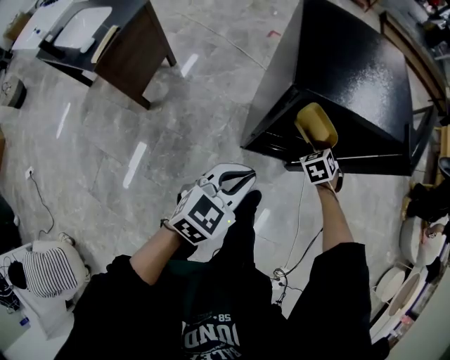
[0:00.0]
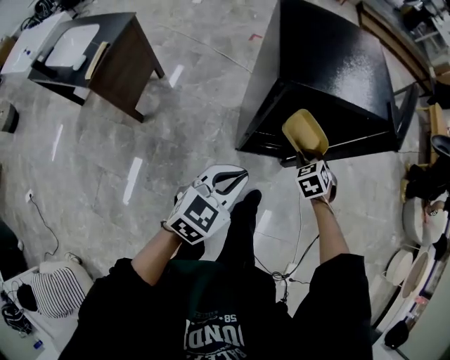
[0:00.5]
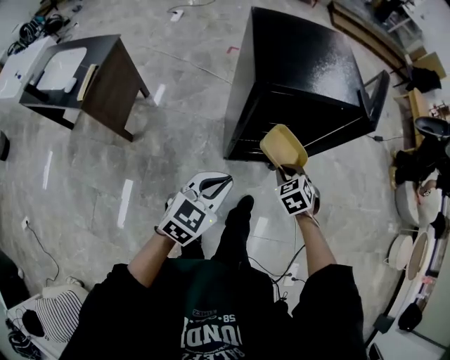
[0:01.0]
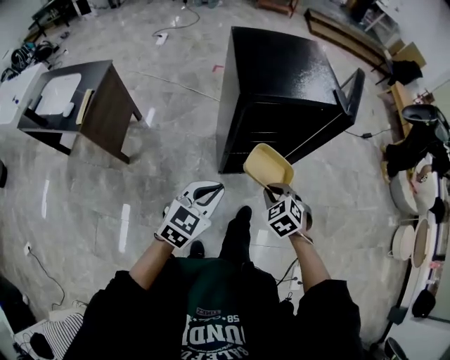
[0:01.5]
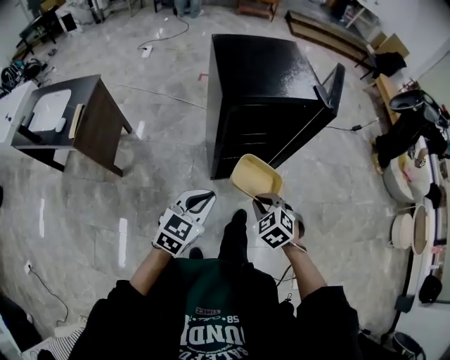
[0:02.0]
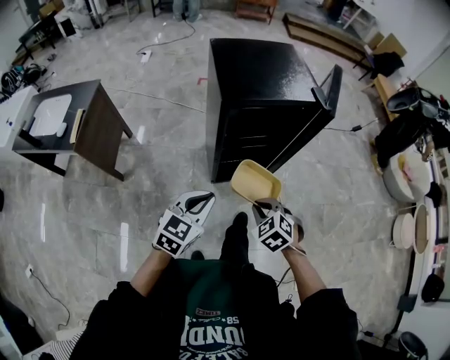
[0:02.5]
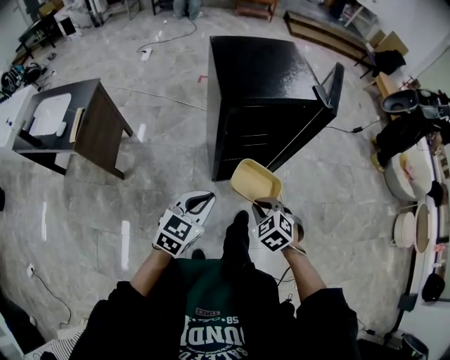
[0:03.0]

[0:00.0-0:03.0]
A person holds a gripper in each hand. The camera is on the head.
0:00.0 to 0:01.5: The left gripper travels backward and upward by some 10 cm; the right gripper is displaced backward and upward by about 30 cm.
0:01.5 to 0:03.0: The right gripper travels backward by about 5 cm.

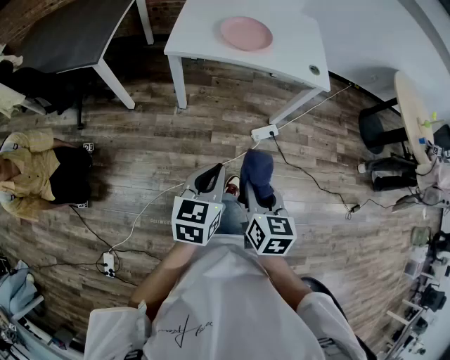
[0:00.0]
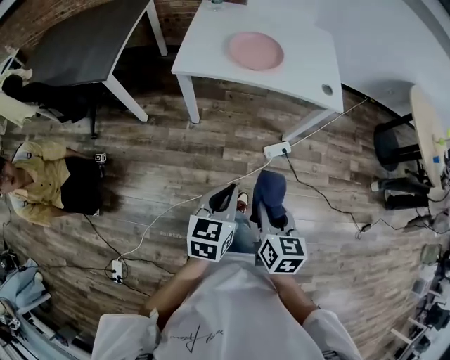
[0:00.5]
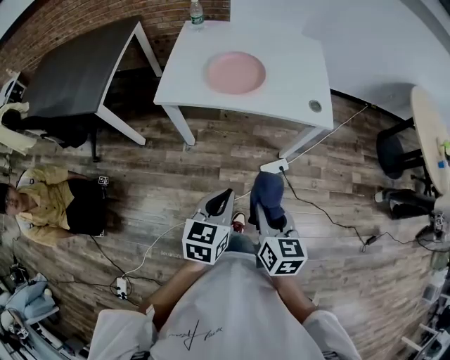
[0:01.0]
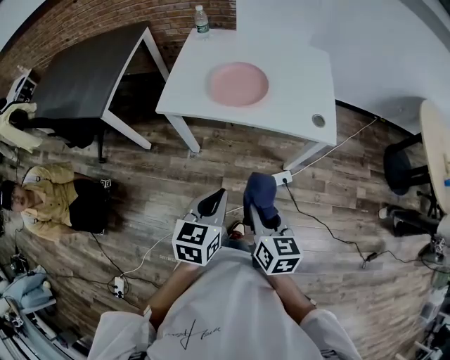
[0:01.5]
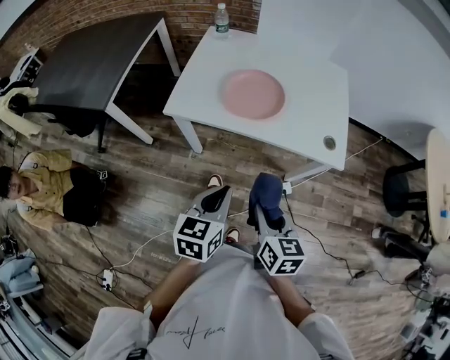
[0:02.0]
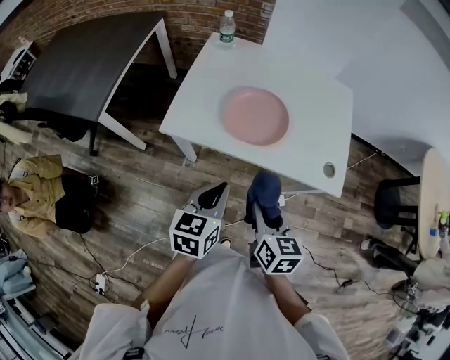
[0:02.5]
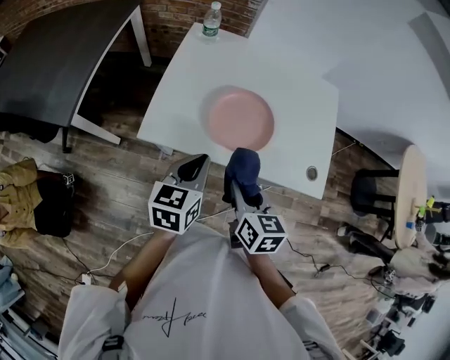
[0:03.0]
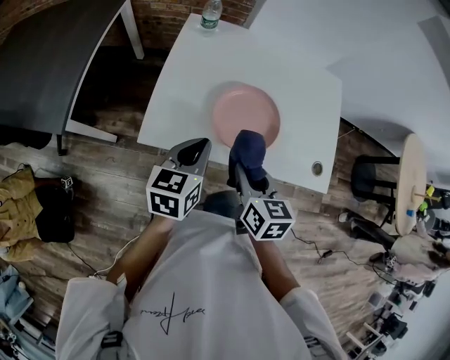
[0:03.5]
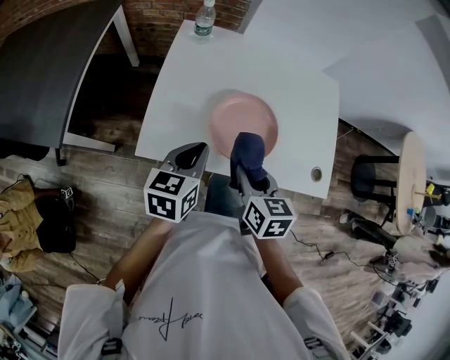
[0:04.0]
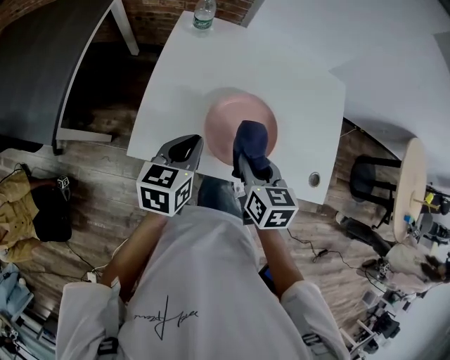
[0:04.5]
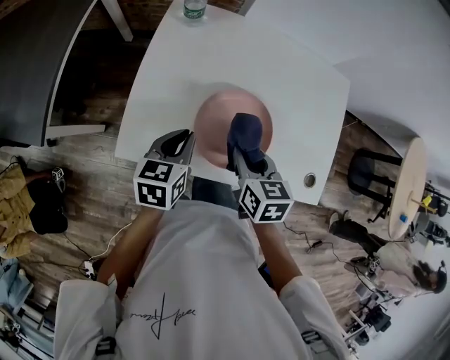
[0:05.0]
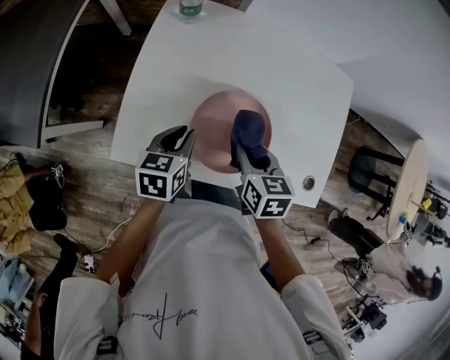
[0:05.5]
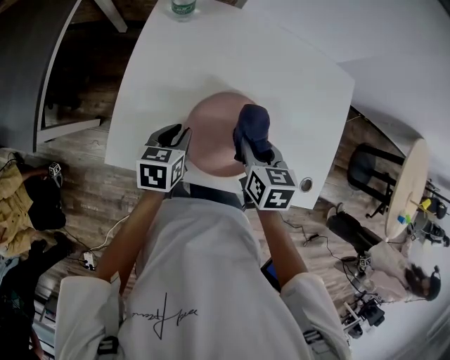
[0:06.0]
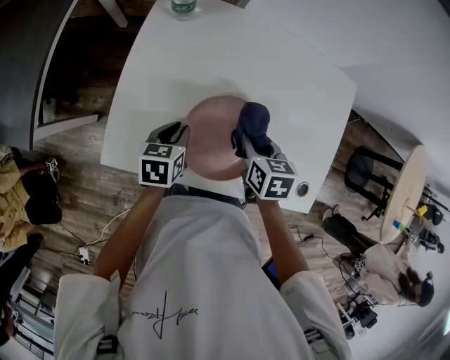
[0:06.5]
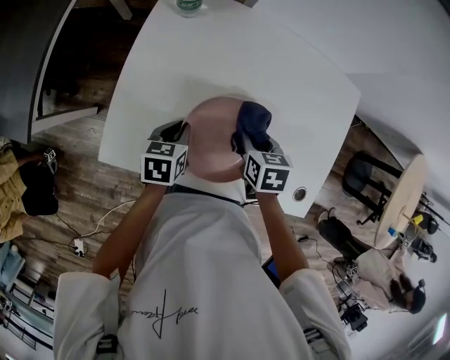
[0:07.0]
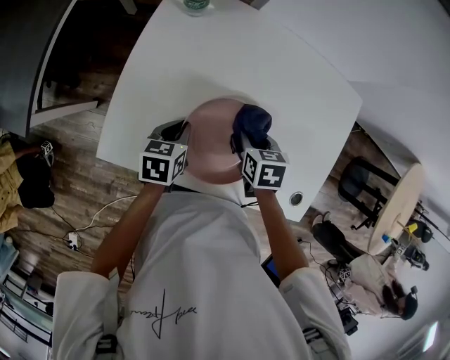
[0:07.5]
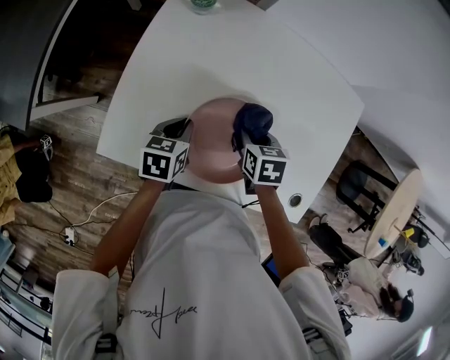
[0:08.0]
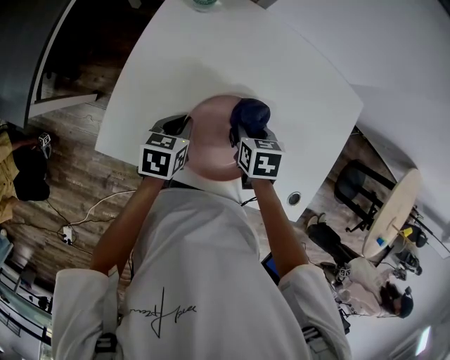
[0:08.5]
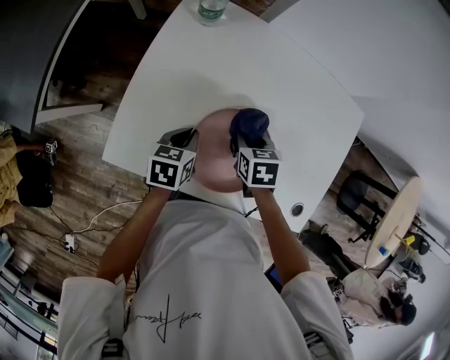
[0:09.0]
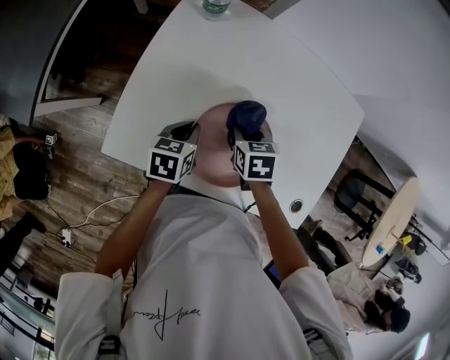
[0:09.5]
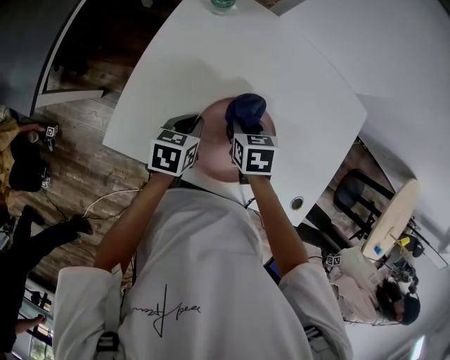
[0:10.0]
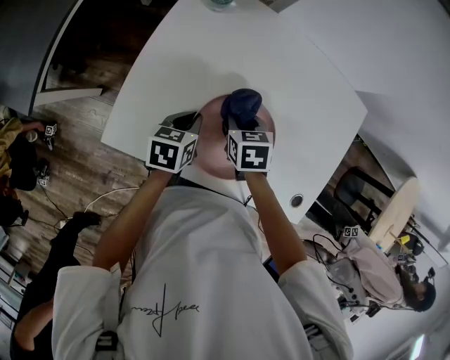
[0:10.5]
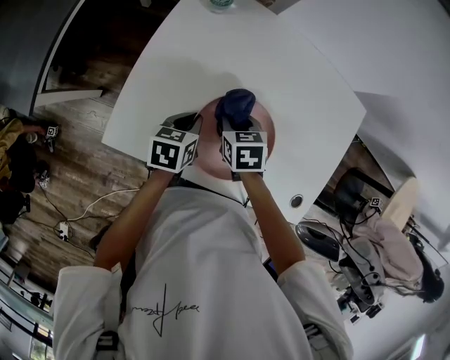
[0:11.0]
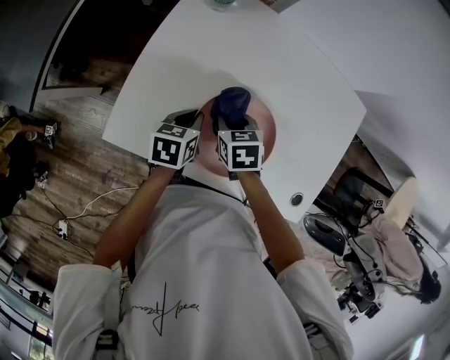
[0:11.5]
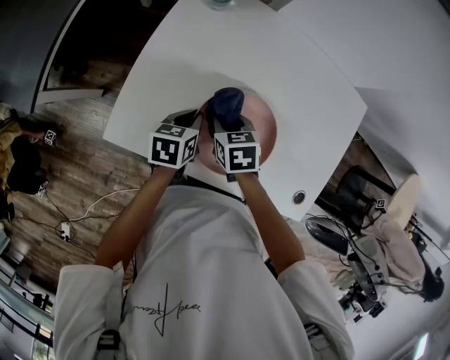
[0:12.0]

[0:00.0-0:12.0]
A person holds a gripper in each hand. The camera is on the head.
0:00.0 to 0:02.0: The two grippers go about 25 cm forward.
0:02.0 to 0:04.0: Both grippers travel together forward, some 30 cm.
0:04.0 to 0:06.0: The right gripper moves forward, downward and to the right, some 20 cm. The left gripper moves downward and forward, roughly 15 cm, turns by some 20 degrees, and opens its fingers.
0:06.0 to 0:08.0: The right gripper shifts some 5 cm downward.
0:08.0 to 0:10.0: The right gripper travels to the left by some 5 cm.
0:10.0 to 0:12.0: The right gripper ends up roughly 5 cm from where it was.

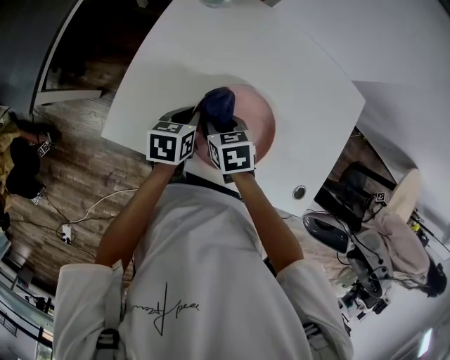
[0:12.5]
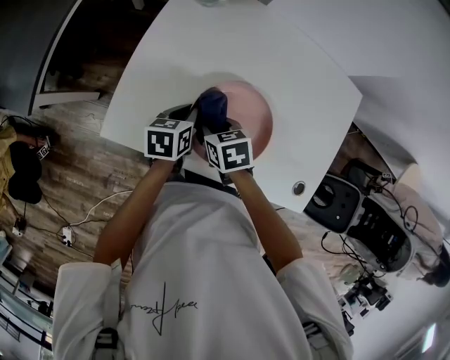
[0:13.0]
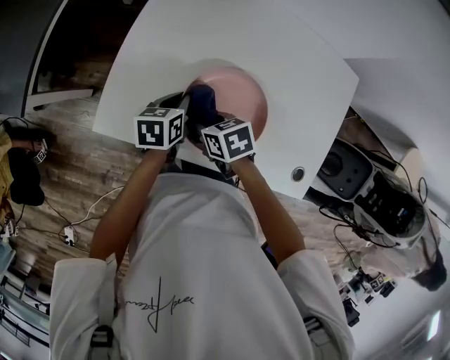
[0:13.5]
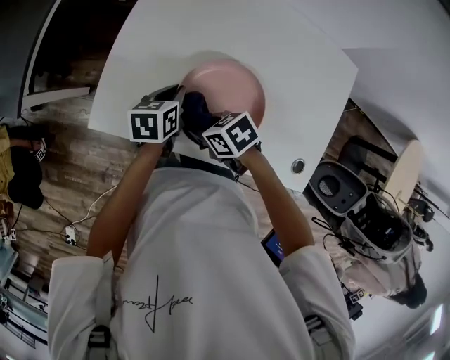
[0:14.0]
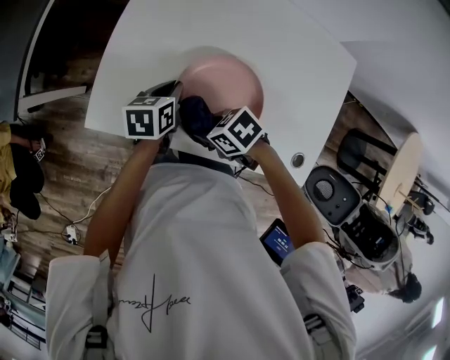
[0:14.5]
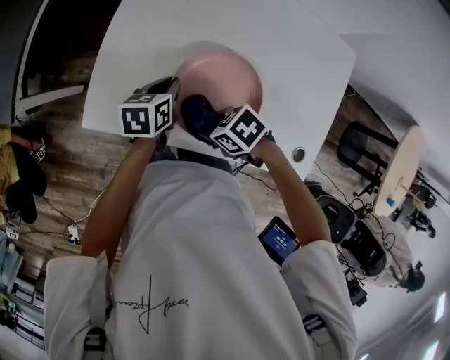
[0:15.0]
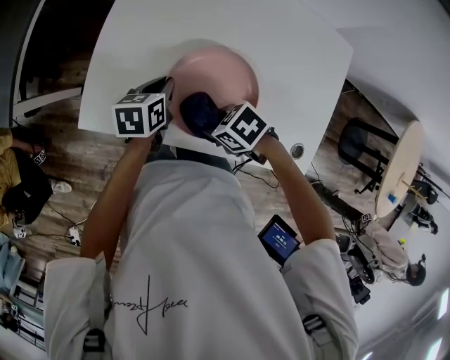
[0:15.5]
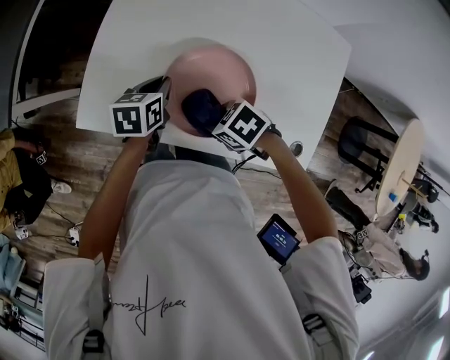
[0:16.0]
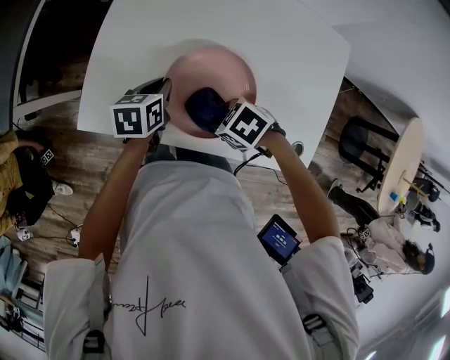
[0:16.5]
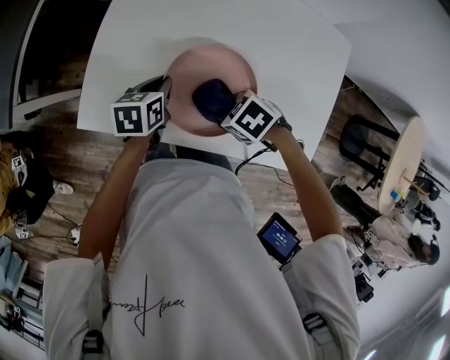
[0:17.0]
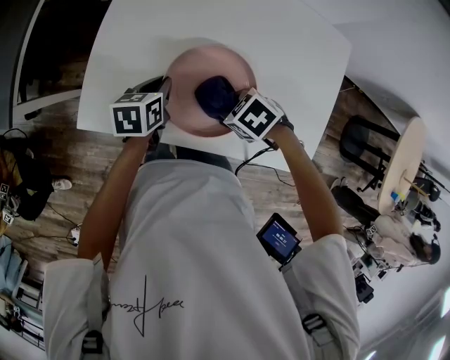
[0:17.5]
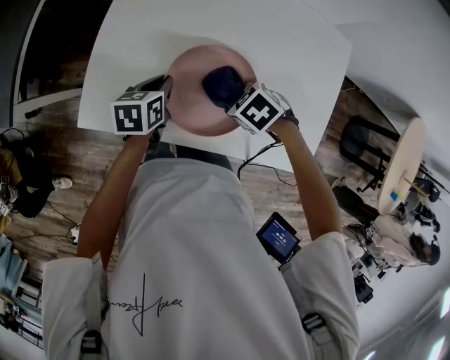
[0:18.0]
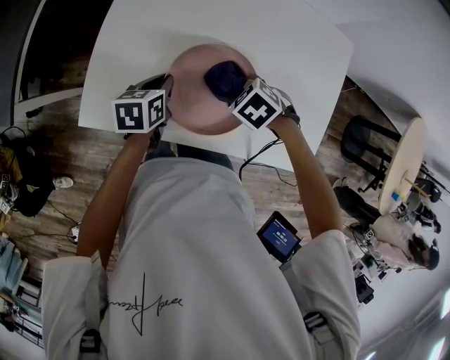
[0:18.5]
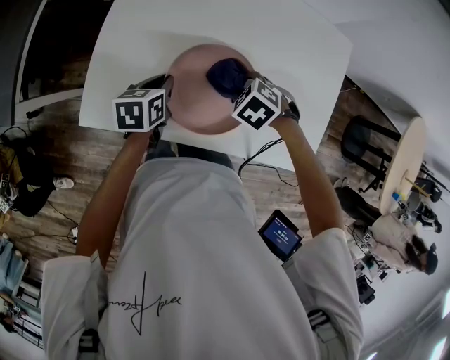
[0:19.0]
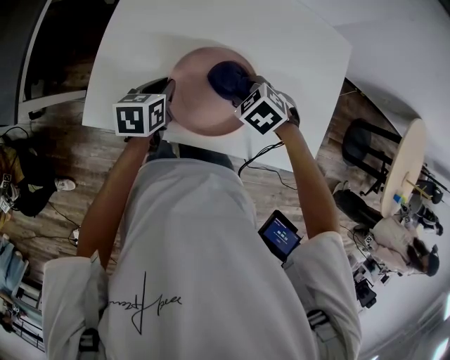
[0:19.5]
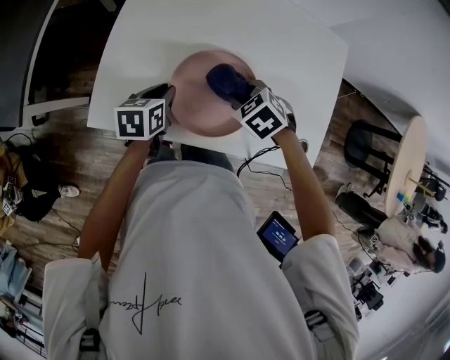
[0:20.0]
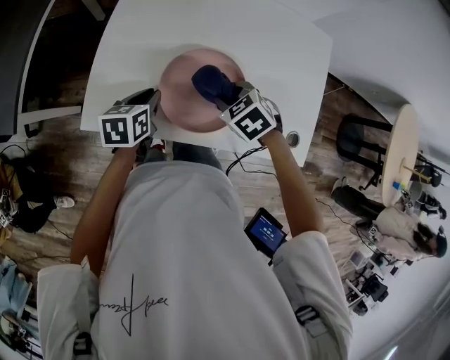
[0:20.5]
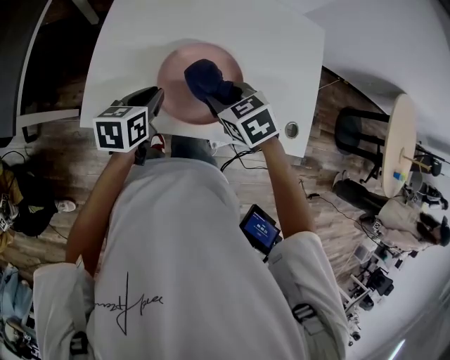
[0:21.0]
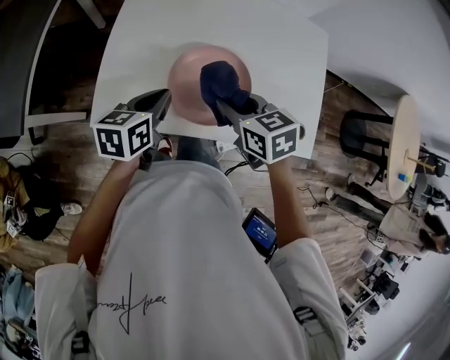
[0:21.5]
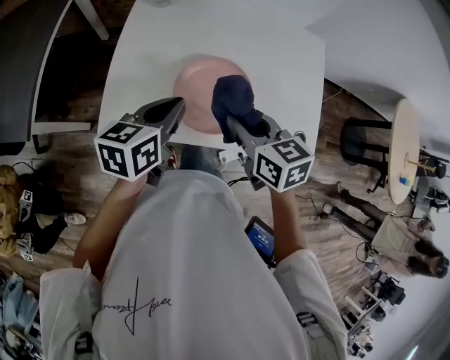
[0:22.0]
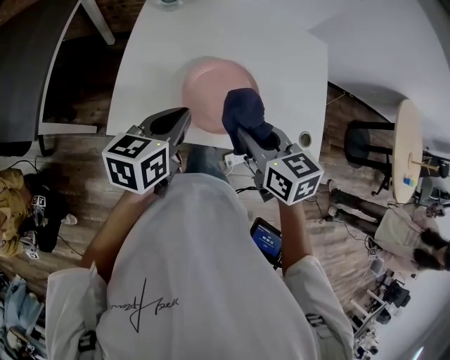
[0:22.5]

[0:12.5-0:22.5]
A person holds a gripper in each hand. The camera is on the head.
0:12.5 to 0:14.5: The right gripper moves some 10 cm, and changes its angle by some 40 degrees.
0:14.5 to 0:16.5: The right gripper ends up roughly 5 cm from where it was.
0:16.5 to 0:18.5: The right gripper ends up about 10 cm from where it was.
0:18.5 to 0:20.5: The grippers make only small movements.
0:20.5 to 0:22.5: Both grippers move upward and backward, some 15 cm. The right gripper tilts its fingers roughly 30 degrees upward; the left gripper rotates approximately 20 degrees.

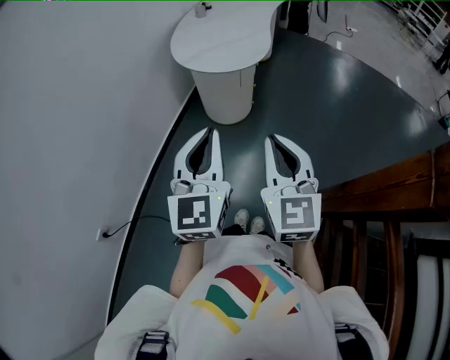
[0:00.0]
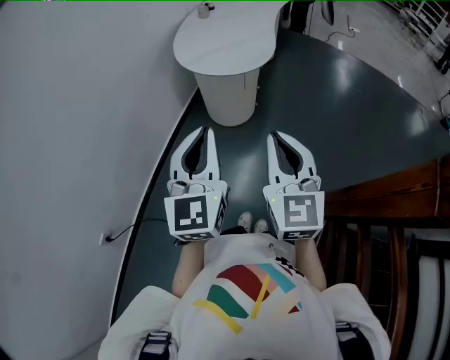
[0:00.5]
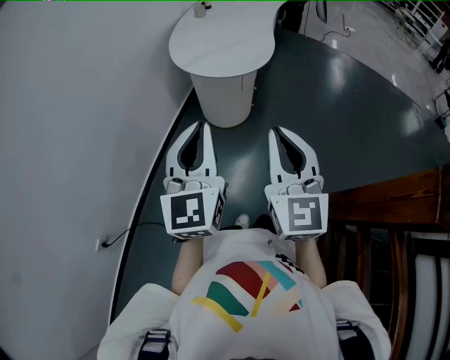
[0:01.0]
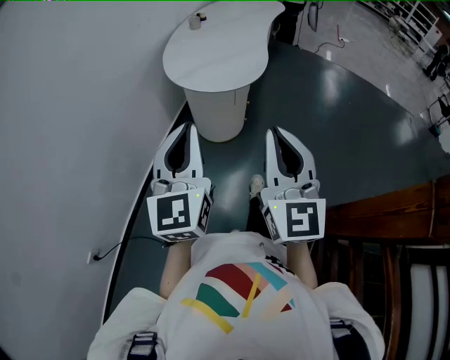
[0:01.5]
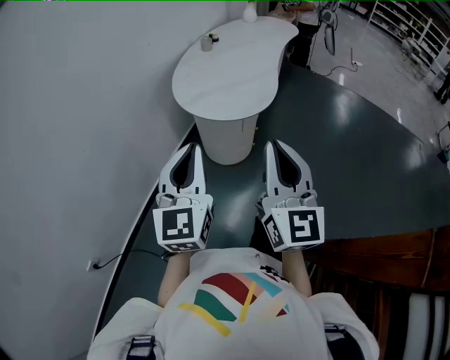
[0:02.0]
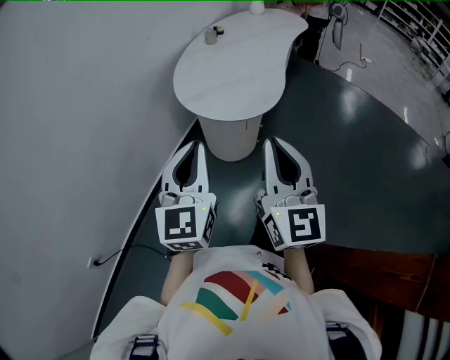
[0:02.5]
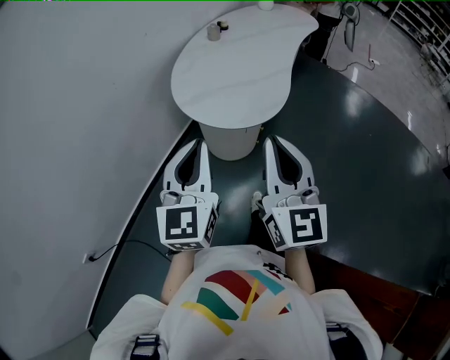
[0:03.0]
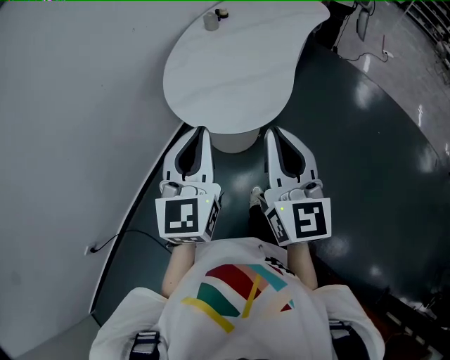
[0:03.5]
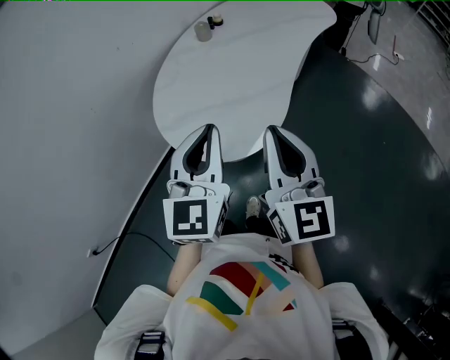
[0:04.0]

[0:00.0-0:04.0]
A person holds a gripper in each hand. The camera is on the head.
0:00.0 to 0:02.0: The two grippers go roughly 15 cm forward.
0:02.0 to 0:04.0: The left gripper heads forward and to the right, covering approximately 35 cm, while the right gripper is displaced forward by about 30 cm.
